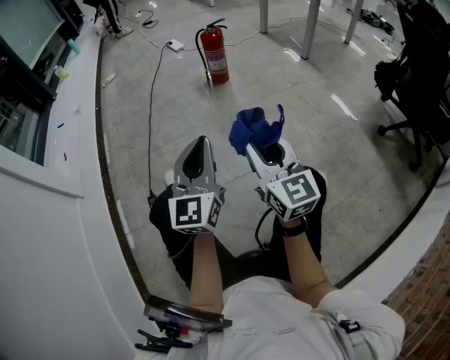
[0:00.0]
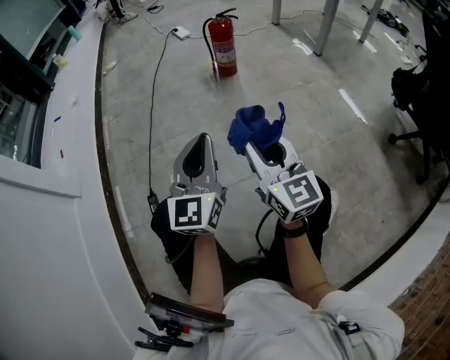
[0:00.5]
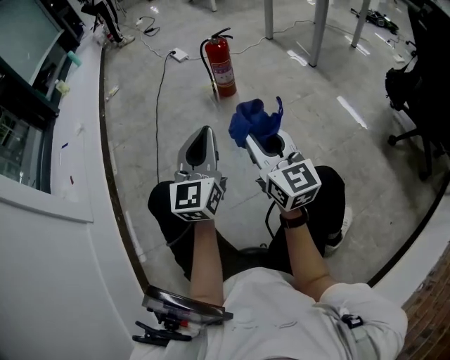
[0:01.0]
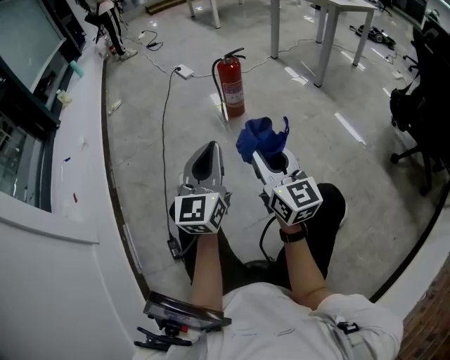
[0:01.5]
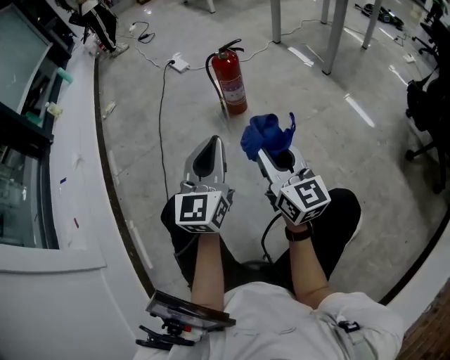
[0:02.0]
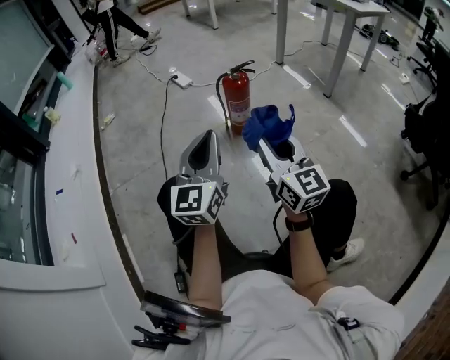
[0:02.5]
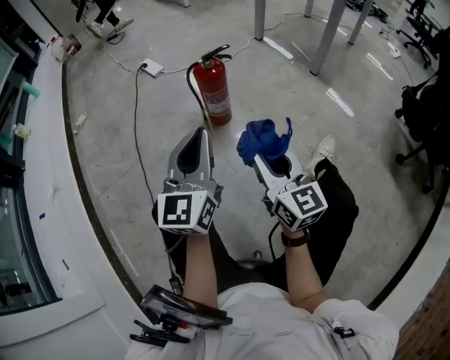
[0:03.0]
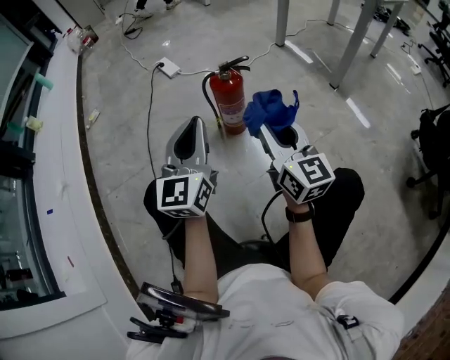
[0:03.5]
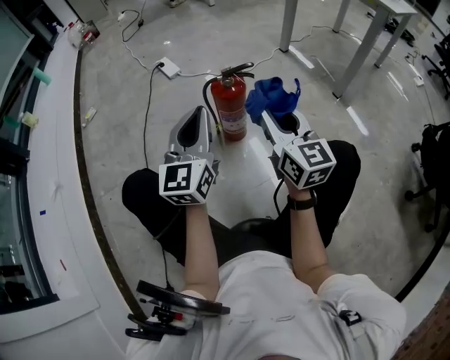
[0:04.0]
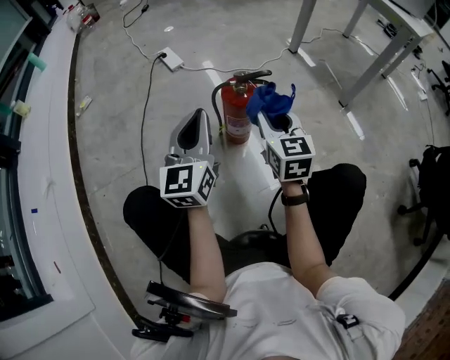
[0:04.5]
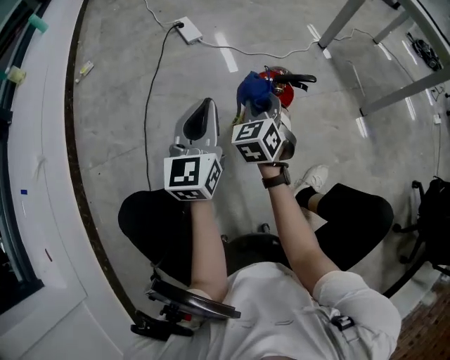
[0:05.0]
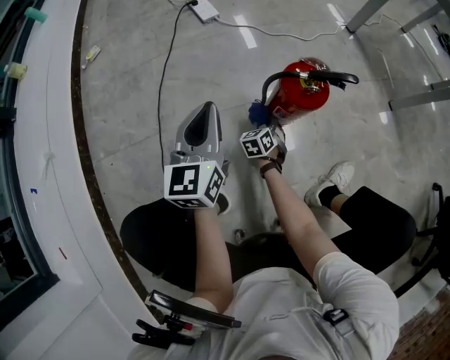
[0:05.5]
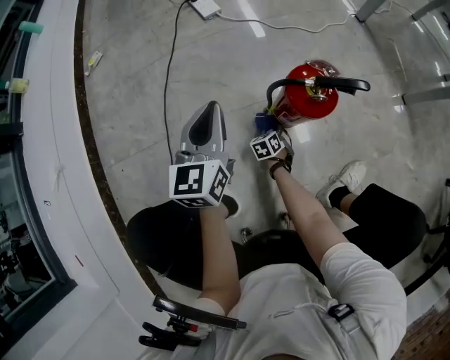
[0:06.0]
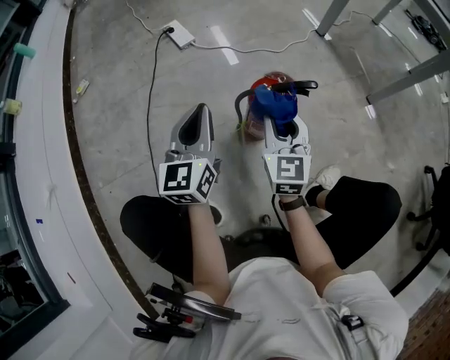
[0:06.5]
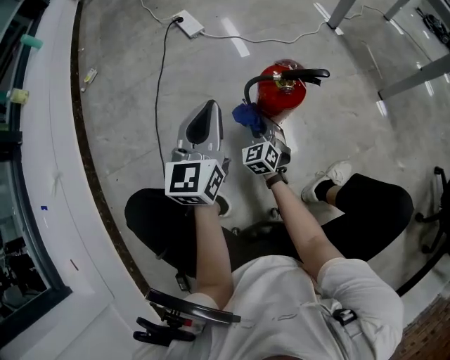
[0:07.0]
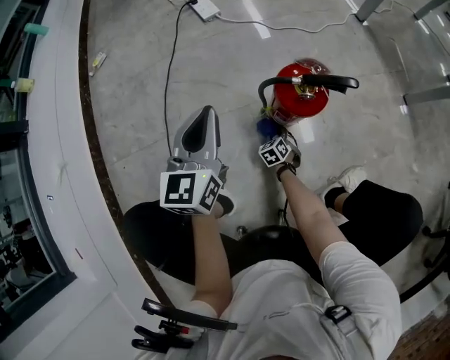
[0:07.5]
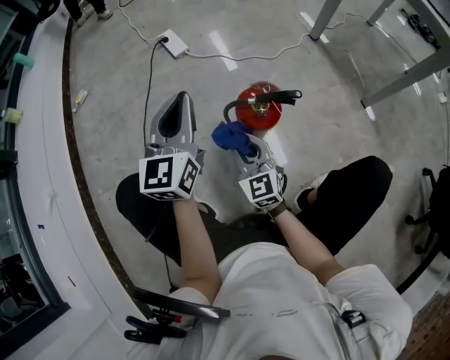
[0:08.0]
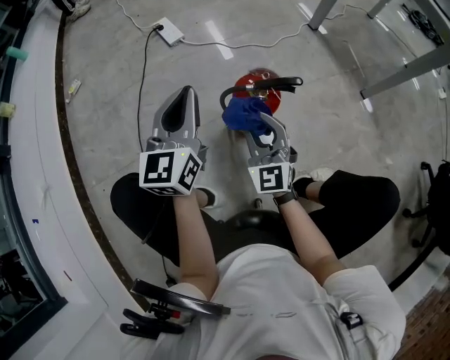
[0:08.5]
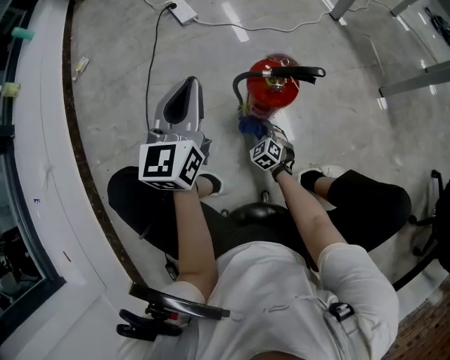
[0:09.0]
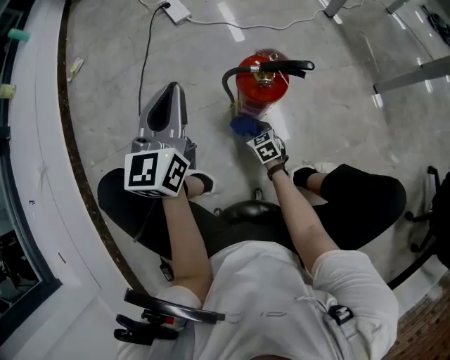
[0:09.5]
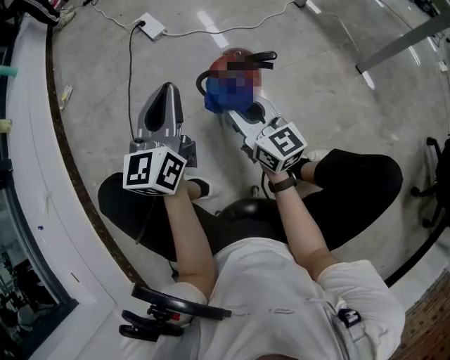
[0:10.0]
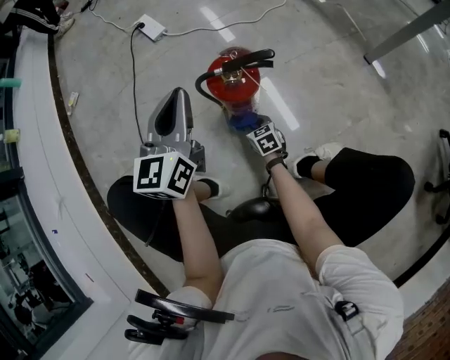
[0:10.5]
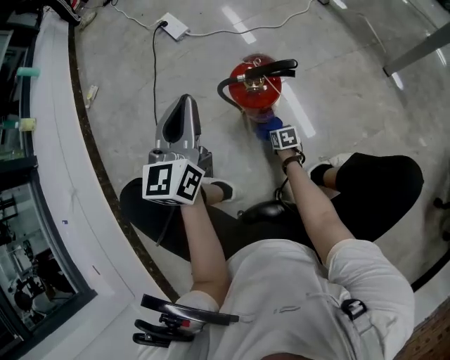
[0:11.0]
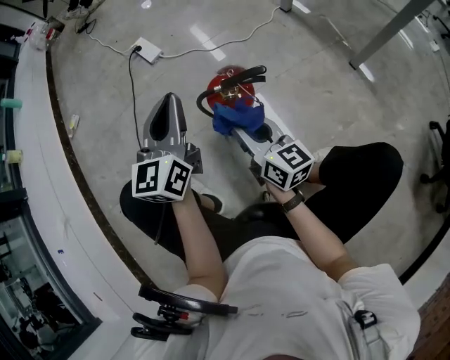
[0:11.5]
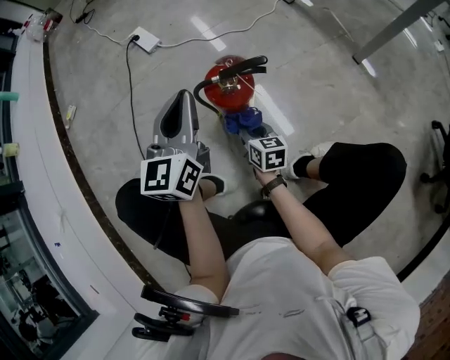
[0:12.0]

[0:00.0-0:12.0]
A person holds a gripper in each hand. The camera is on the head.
0:00.0 to 0:02.0: Both grippers move forward, approximately 30 cm.
0:02.0 to 0:04.0: The two grippers go some 30 cm forward.
0:04.0 to 0:06.0: The right gripper shifts roughly 60 cm downward, and points its fingers approximately 60 degrees further downward, while the left gripper travels forward, downward and to the left by some 30 cm, and changes its angle by roughly 20 degrees.
0:06.0 to 0:08.0: The left gripper shifts some 15 cm upward and to the right, while the right gripper goes up and down, about 40 cm each way, reversing 2 times, and angles its fingers upward, by some 50 degrees.
0:08.0 to 0:10.0: The left gripper moves some 5 cm, while the right gripper swings up and down, approximately 35 cm each way, with 2 reversals, and turns by approximately 30 degrees.
0:10.0 to 0:12.0: The right gripper swings up and down, some 40 cm each way, with 2 reversals, and tilts its fingers about 30 degrees downward.

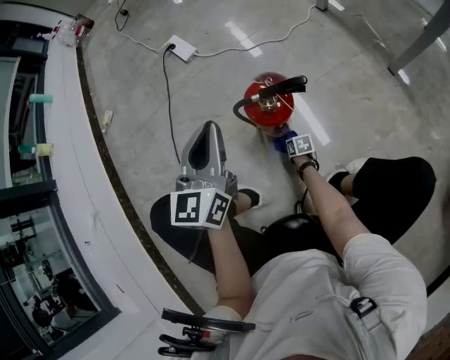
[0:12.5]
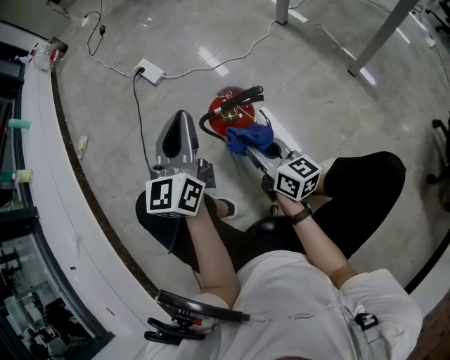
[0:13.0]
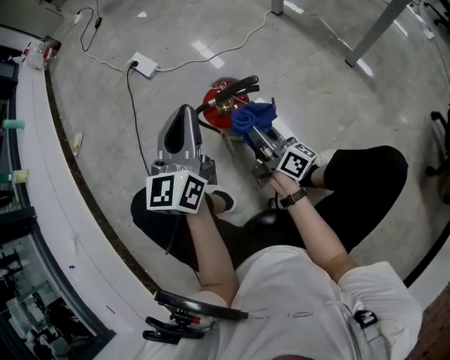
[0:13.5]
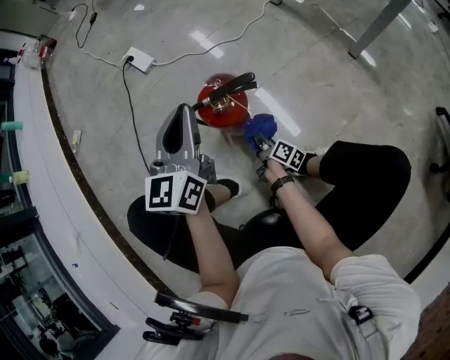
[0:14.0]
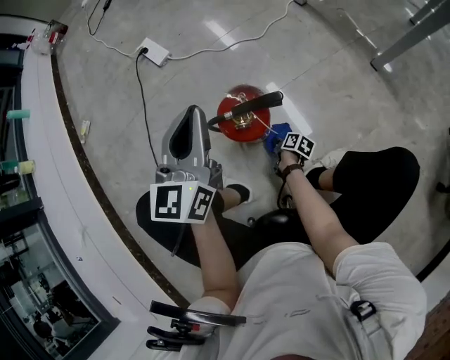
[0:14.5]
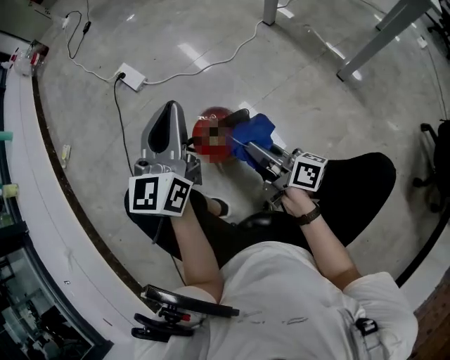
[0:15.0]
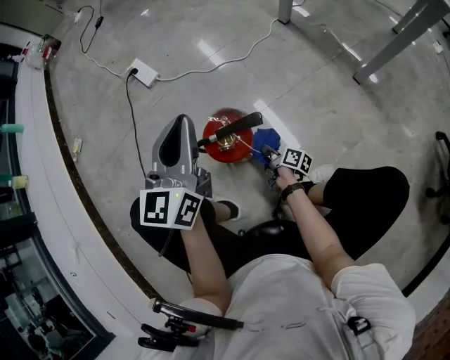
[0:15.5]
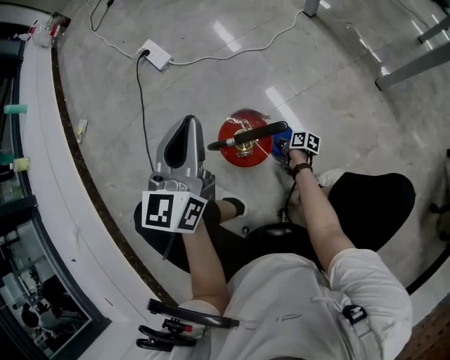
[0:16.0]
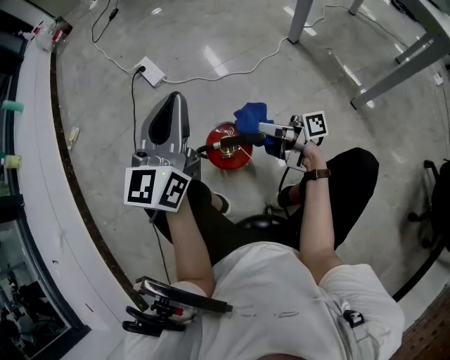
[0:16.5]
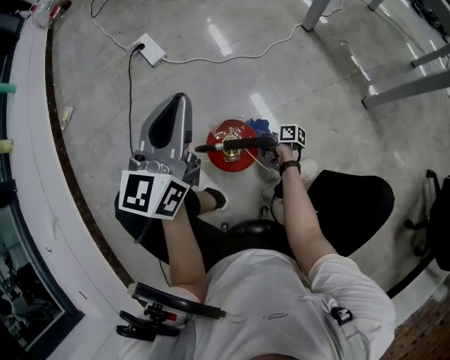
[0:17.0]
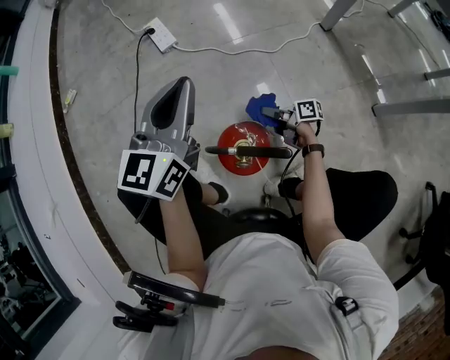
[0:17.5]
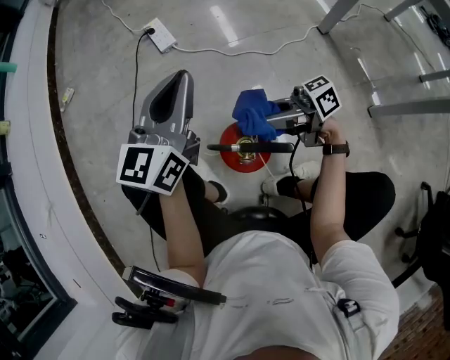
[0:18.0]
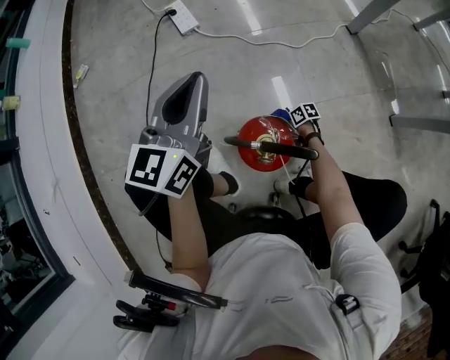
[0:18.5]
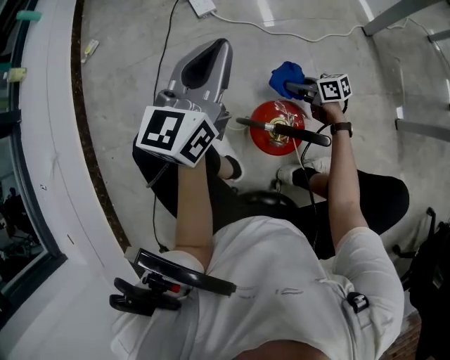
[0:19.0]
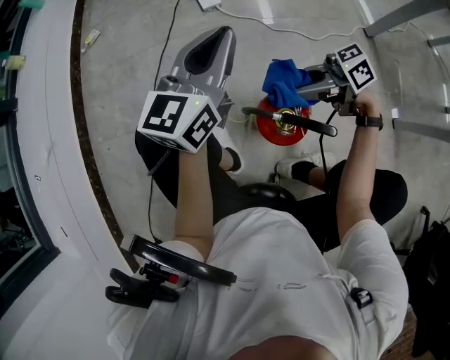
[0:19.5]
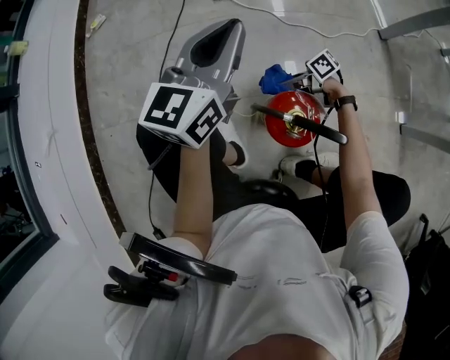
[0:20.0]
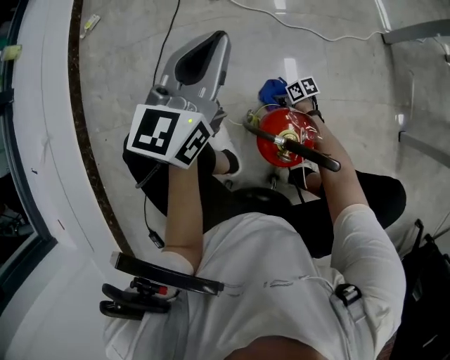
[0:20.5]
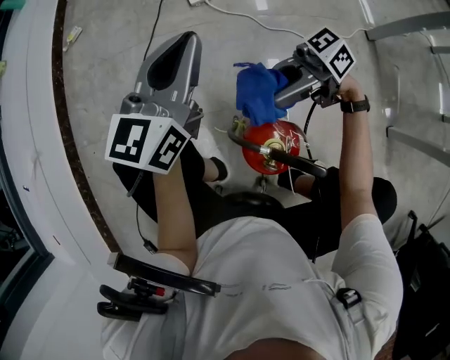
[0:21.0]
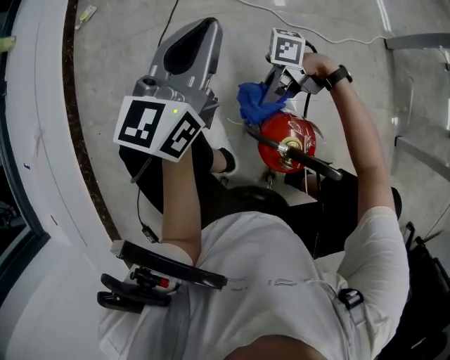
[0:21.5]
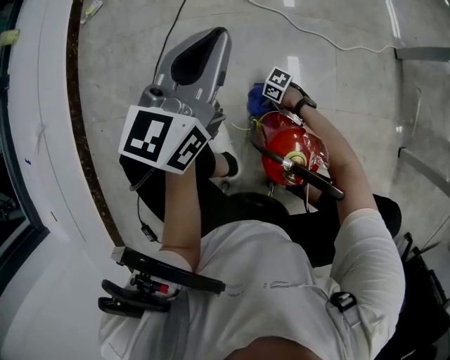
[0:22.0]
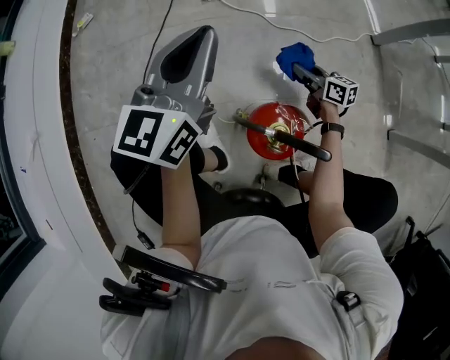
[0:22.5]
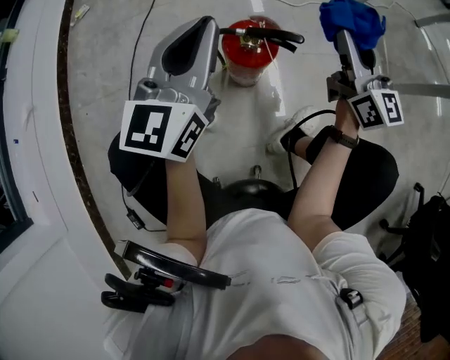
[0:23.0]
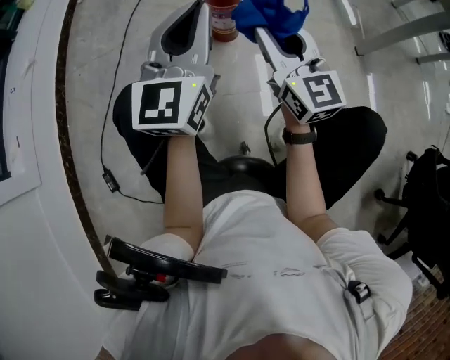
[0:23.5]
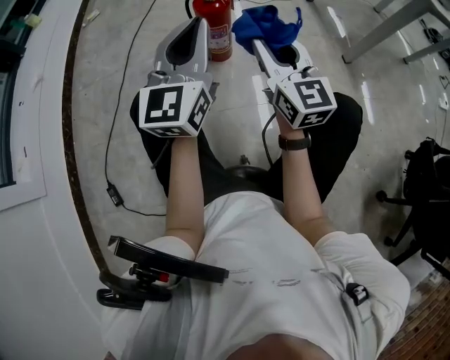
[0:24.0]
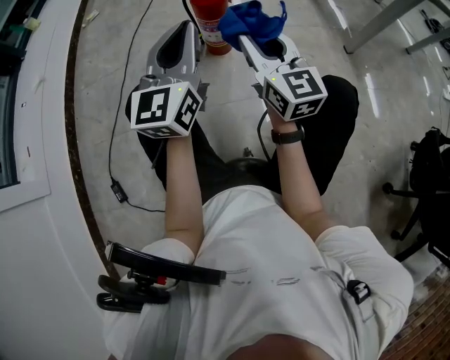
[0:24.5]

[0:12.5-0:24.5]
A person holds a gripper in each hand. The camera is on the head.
0:12.5 to 0:14.5: The right gripper shifts roughly 5 cm to the right, moves about 40 cm upward and comes back, and twists about 40 degrees clockwise, seen from behind, while the left gripper is displaced forward and to the right by roughly 10 cm.
0:14.5 to 0:16.5: The left gripper travels upward and forward by roughly 10 cm; the right gripper swings up and down, roughly 40 cm each way, with 2 reversals, and tips its fingers upward by approximately 60 degrees.
0:16.5 to 0:18.5: The right gripper goes up and down, roughly 40 cm each way, reversing 2 times, and tilts its fingers approximately 60 degrees downward. Meanwhile the left gripper changes place by about 10 cm.
0:18.5 to 0:20.5: The right gripper goes upward and returns, some 40 cm each way.
0:20.5 to 0:22.5: The right gripper goes up and down, roughly 40 cm each way, reversing 2 times, and changes its angle by about 40 degrees.
0:22.5 to 0:24.5: The pair of grippers is taken backward, approximately 50 cm. The right gripper goes about 35 cm upward, and changes its angle by roughly 50 degrees.

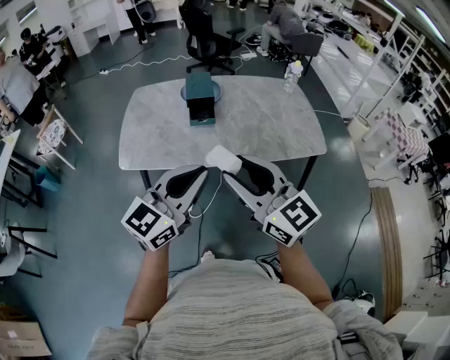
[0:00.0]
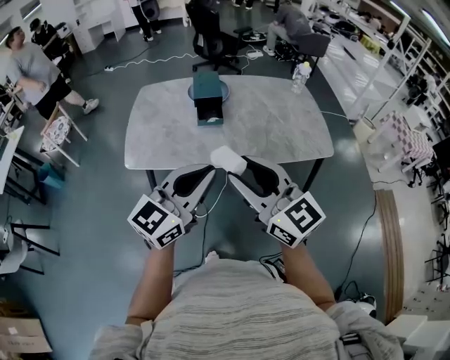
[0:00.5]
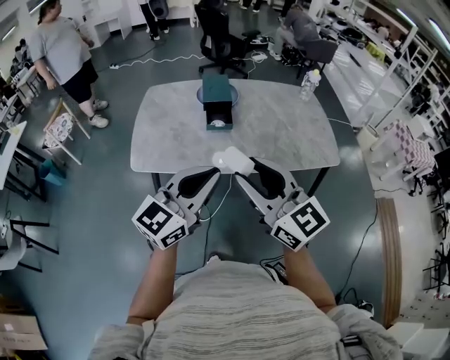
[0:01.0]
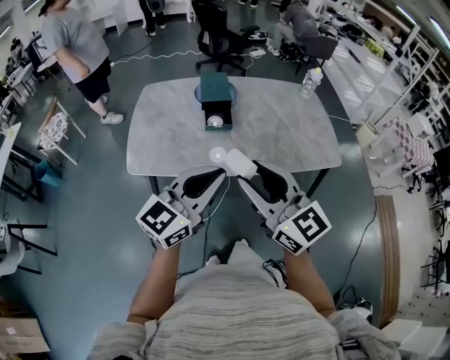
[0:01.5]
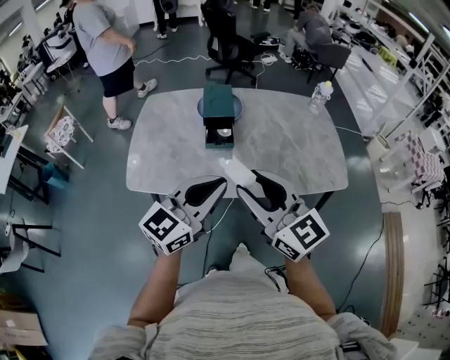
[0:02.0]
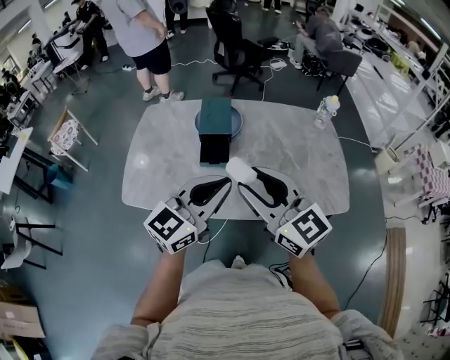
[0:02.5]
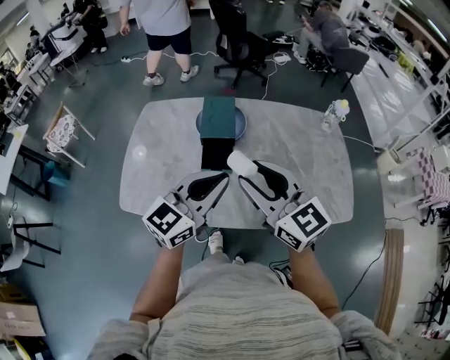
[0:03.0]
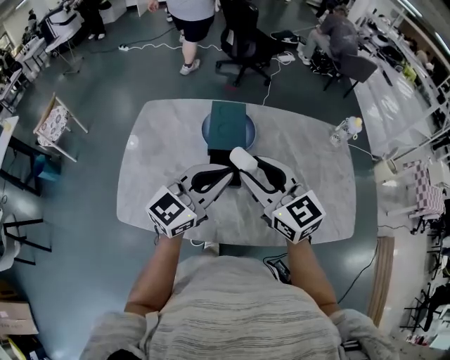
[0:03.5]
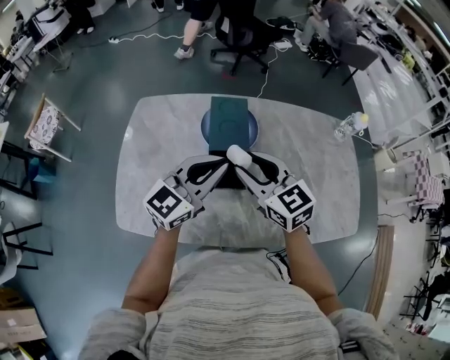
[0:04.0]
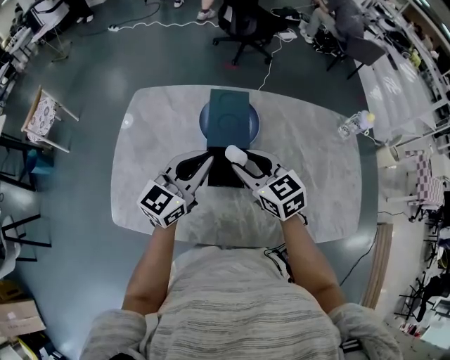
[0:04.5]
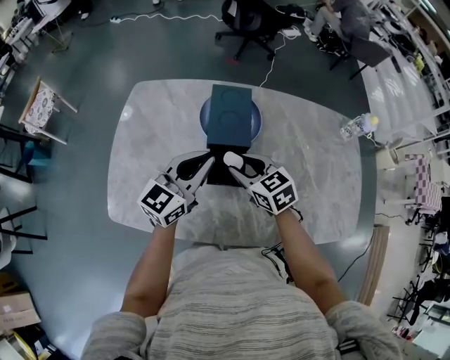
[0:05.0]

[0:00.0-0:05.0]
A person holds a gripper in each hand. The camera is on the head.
0:00.0 to 0:02.5: Both grippers travel together forward, some 25 cm.
0:02.5 to 0:05.0: The right gripper shifts about 40 cm forward and downward, and tilts its fingers some 40 degrees downward. The left gripper travels forward, to the left and downward by roughly 35 cm.
